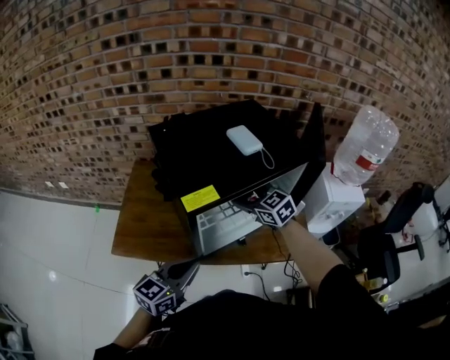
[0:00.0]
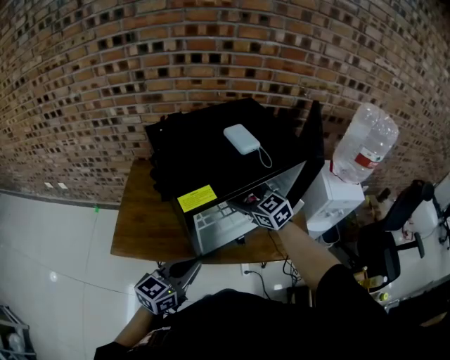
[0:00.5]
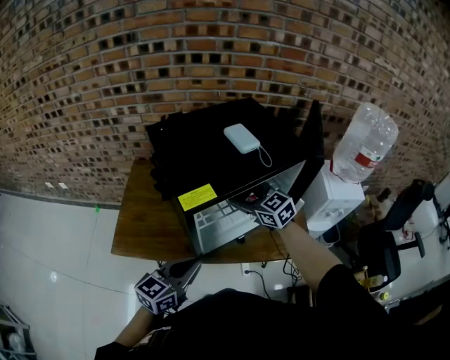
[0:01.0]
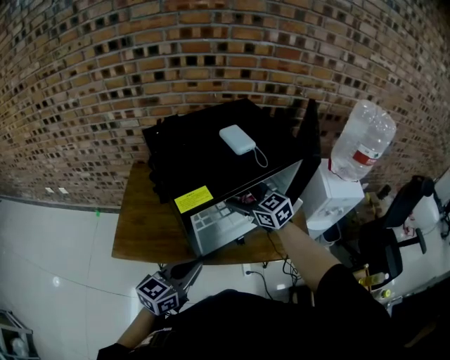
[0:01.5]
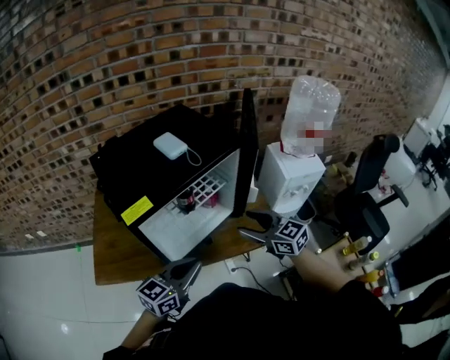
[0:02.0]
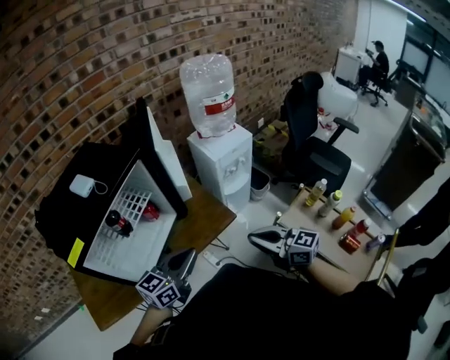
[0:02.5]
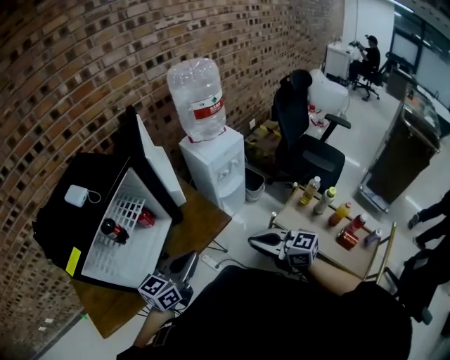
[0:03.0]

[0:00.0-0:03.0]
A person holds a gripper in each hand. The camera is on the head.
0:00.0 to 0:01.5: The grippers stay close to where they were, moving slightly.
0:01.5 to 0:03.0: The right gripper ends up roughly 50 cm from where it was, changes its angle by some 40 degrees, and closes. Meanwhile the left gripper ends up approximately 30 cm from where it was, and rotates about 40 degrees.

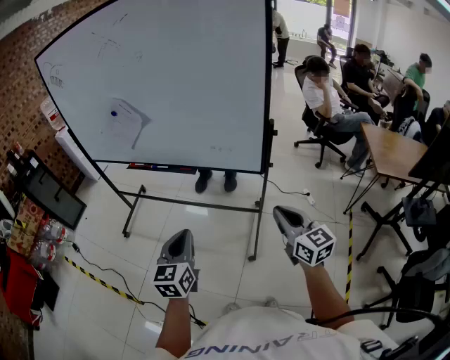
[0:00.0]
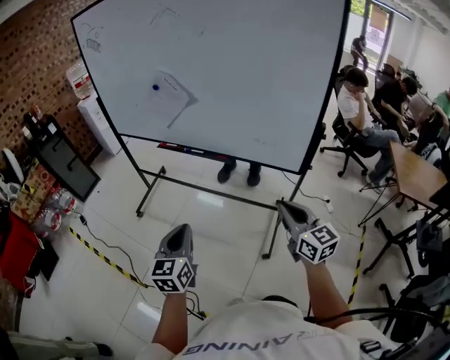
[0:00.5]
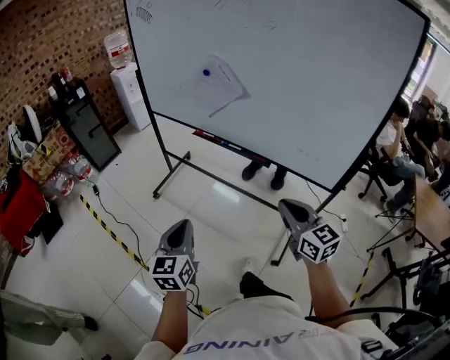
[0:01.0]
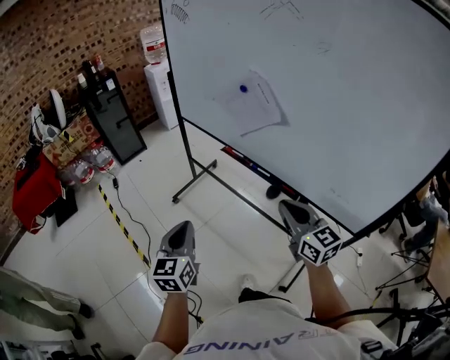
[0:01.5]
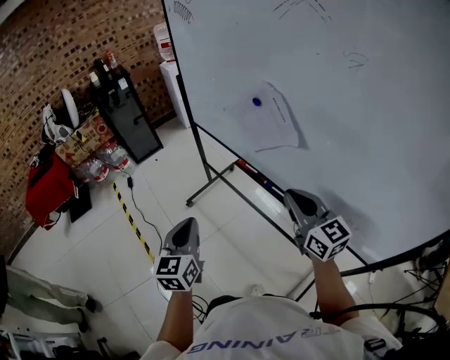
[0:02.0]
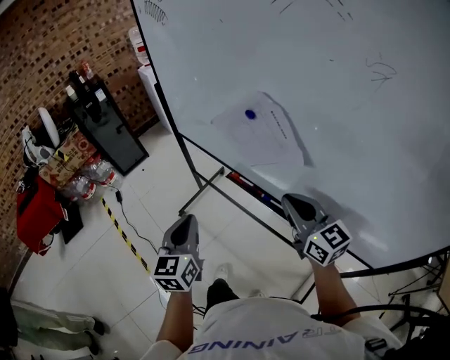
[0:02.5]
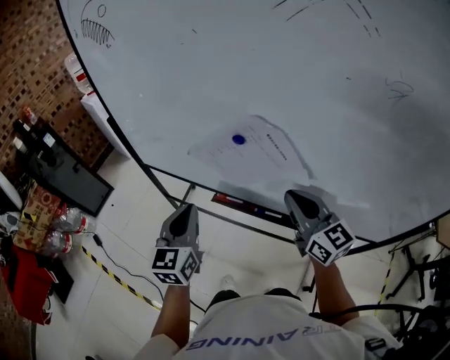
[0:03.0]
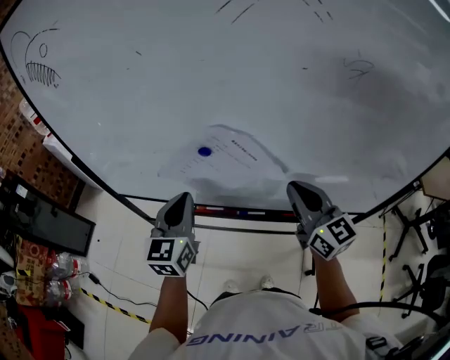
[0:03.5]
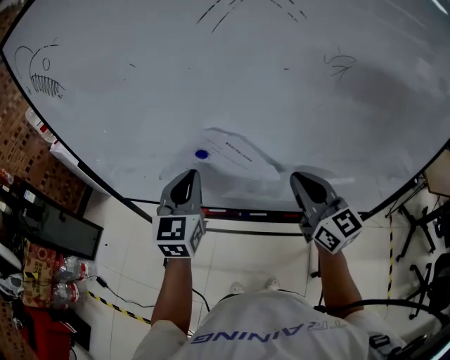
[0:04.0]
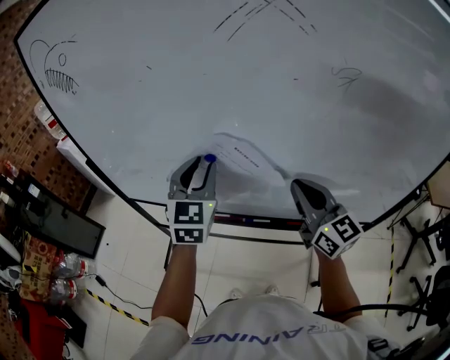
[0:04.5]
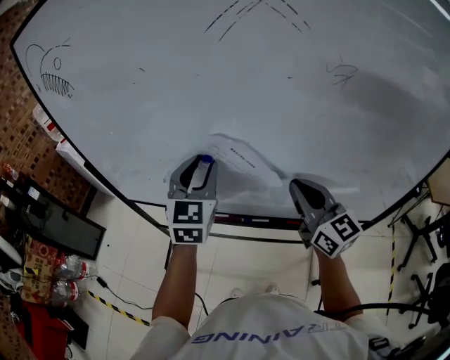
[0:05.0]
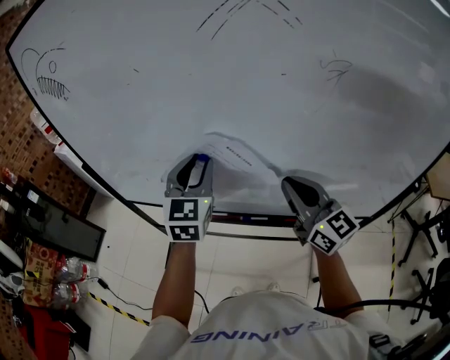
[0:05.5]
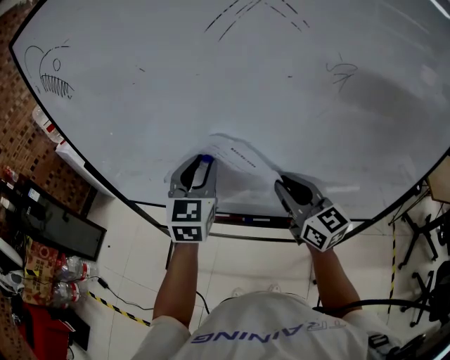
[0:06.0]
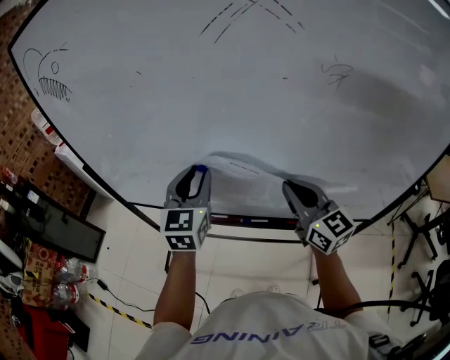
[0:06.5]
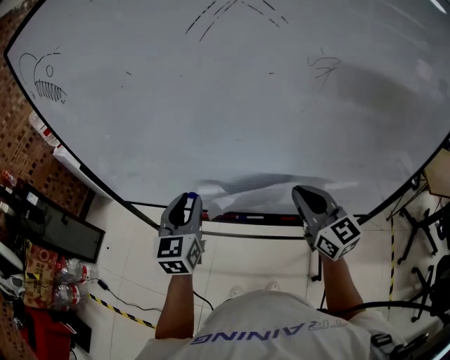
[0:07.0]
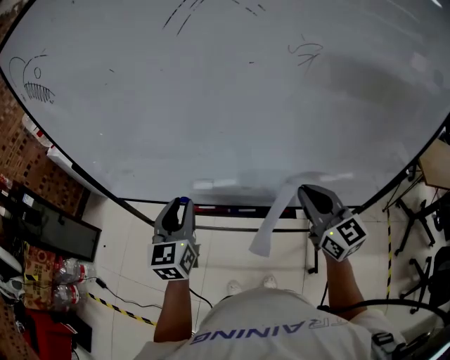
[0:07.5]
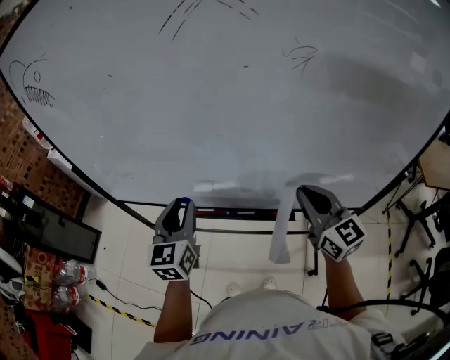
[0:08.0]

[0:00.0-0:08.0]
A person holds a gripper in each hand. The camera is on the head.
0:00.0 to 0:02.0: The two grippers travel together, about 50 cm. The right gripper turns by about 40 degrees. The left gripper turns by roughly 30 degrees.
0:02.0 to 0:04.0: The right gripper changes place by roughly 15 cm, and swivels approximately 40 degrees; the left gripper shifts by about 35 cm, and swivels approximately 50 degrees.
0:04.0 to 0:06.0: The left gripper opens.
0:06.0 to 0:08.0: The right gripper travels to the right and backward by some 10 cm. Meanwhile the left gripper shifts about 10 cm backward and downward.

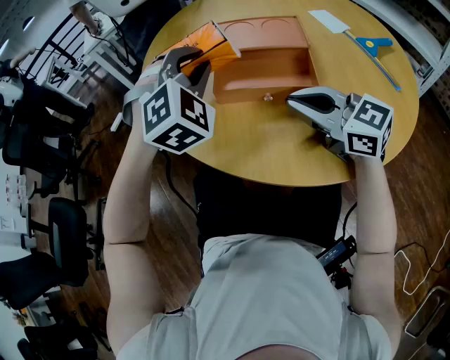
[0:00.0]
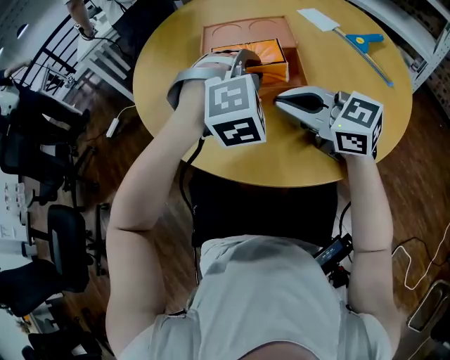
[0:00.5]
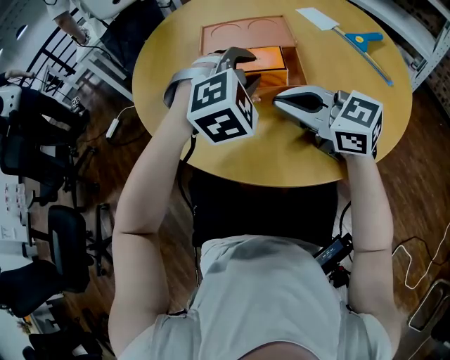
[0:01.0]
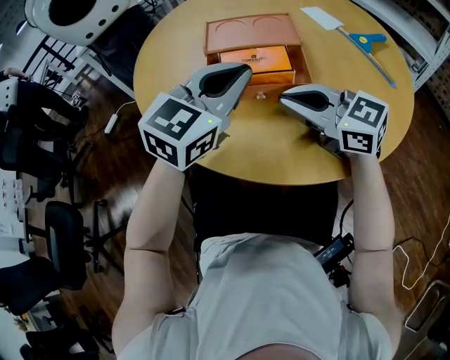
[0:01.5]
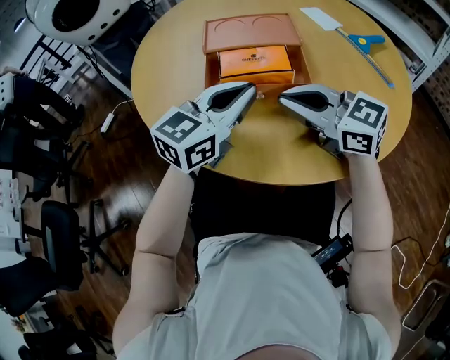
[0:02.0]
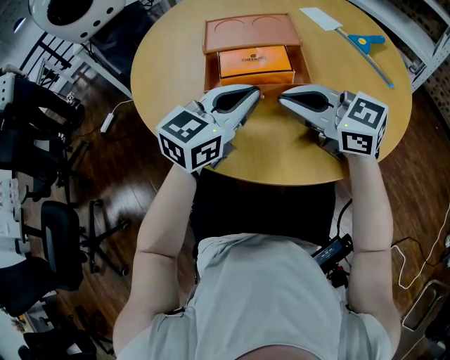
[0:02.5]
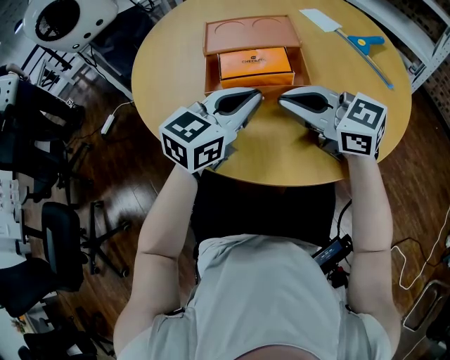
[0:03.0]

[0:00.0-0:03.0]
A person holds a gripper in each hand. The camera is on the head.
0:00.0 to 0:01.5: The left gripper travels backward and to the right by about 10 cm, turns by approximately 60 degrees, and closes.
0:01.5 to 0:03.0: The left gripper travels downward by some 5 cm.

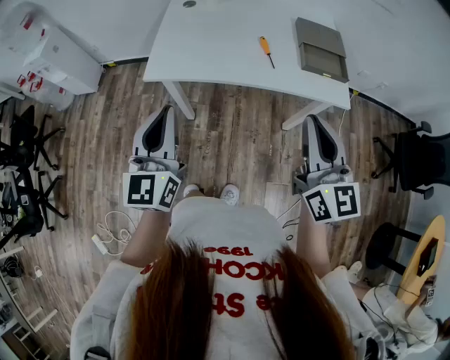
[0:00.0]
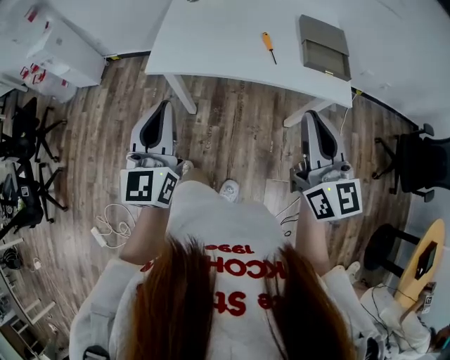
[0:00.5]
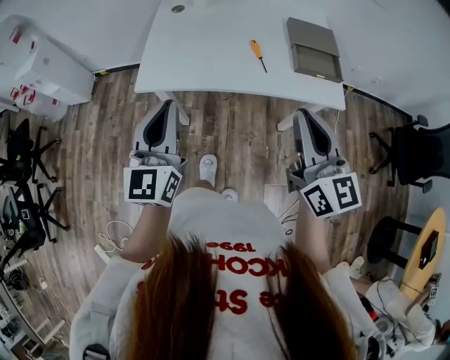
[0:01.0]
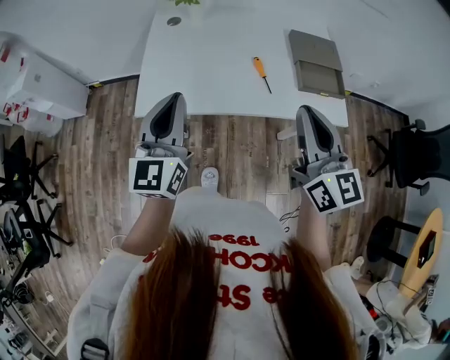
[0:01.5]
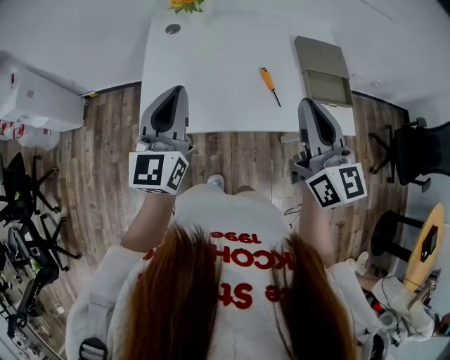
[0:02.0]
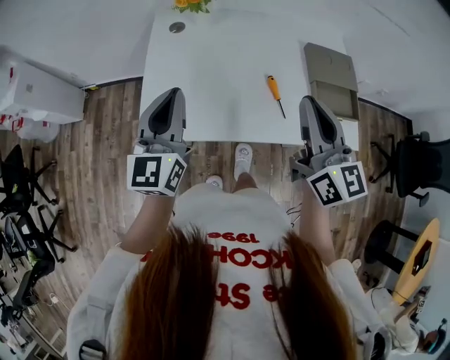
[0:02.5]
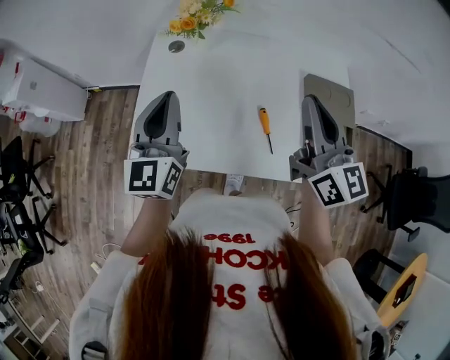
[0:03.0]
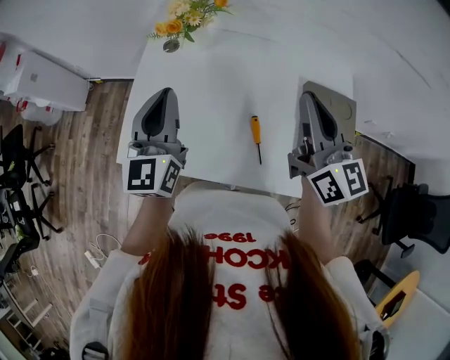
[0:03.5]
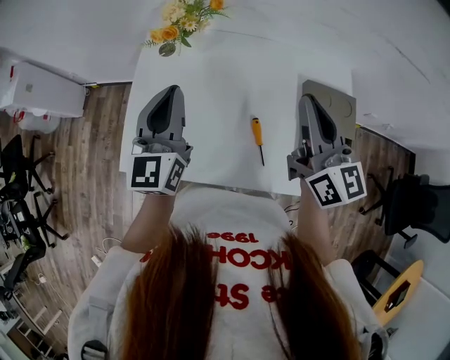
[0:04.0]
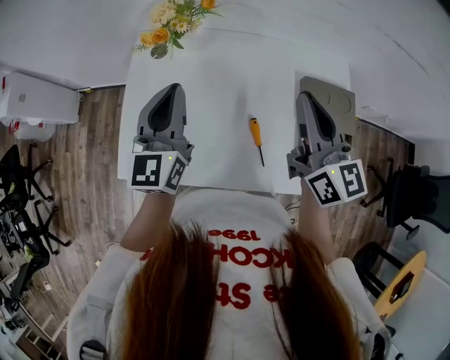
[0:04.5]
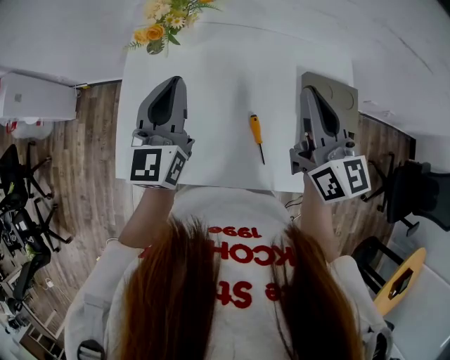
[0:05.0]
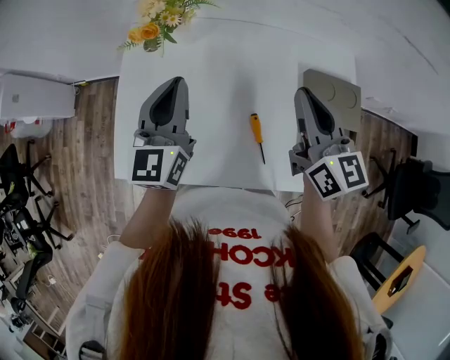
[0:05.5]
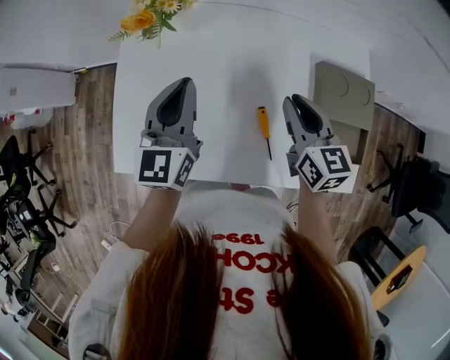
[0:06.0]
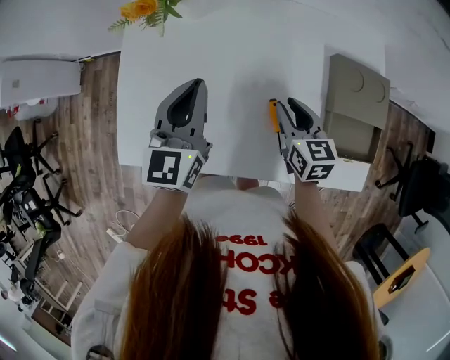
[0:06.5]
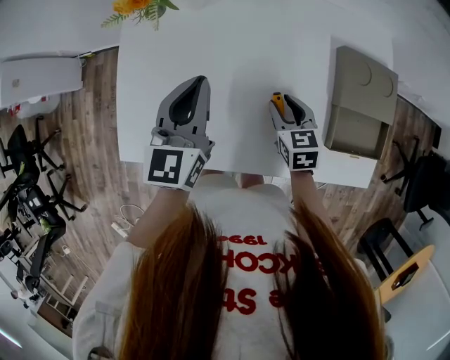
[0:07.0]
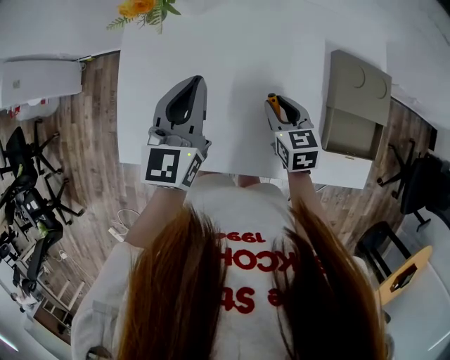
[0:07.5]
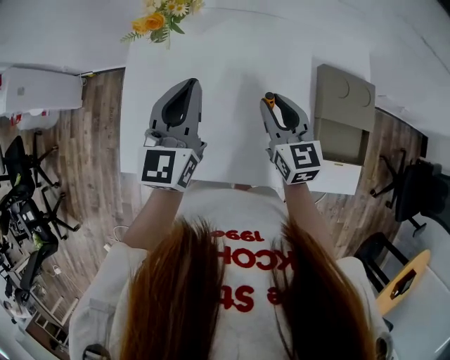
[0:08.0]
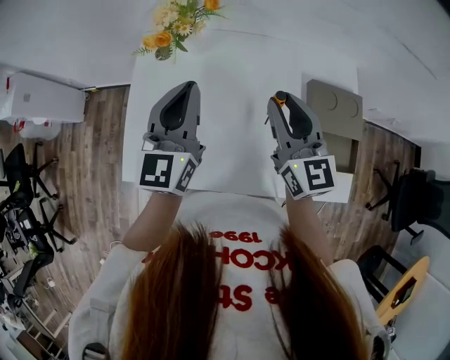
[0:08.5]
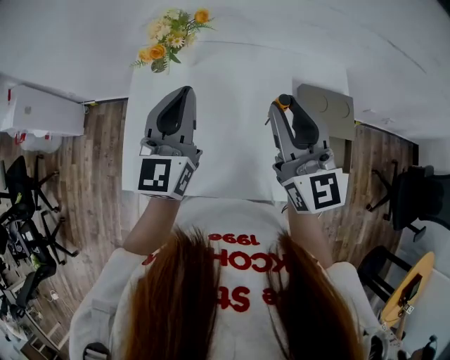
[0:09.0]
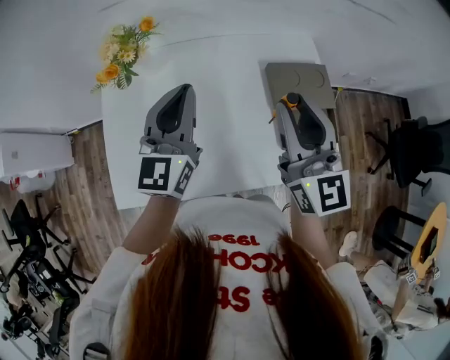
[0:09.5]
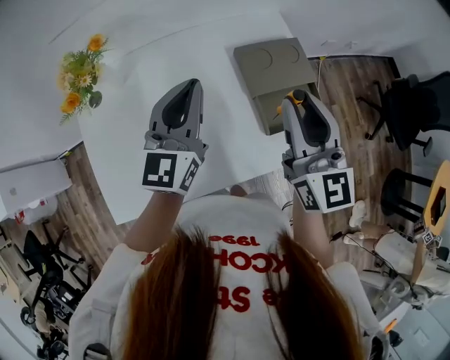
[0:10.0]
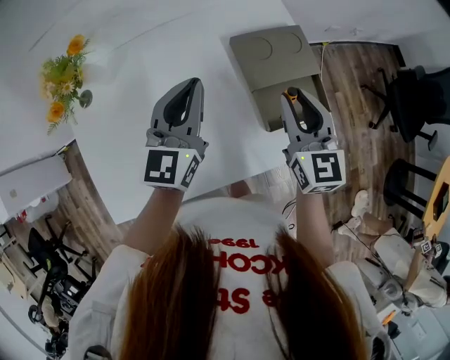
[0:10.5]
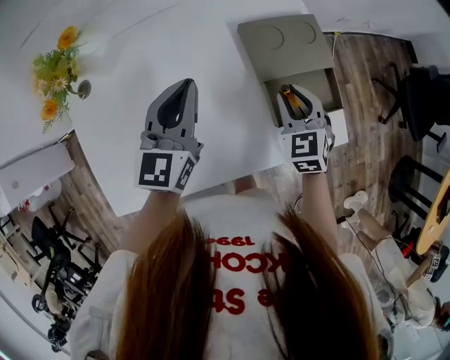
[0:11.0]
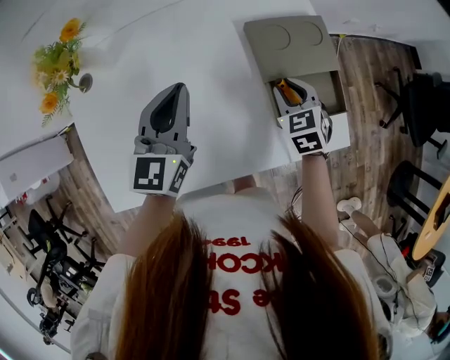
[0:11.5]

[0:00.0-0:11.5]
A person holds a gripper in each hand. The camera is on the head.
0:00.0 to 0:02.0: The two grippers go about 20 cm forward.
0:02.0 to 0:04.0: The right gripper heads forward, covering roughly 20 cm; the left gripper travels forward and to the right by about 15 cm.
0:04.0 to 0:06.0: The right gripper is displaced downward by approximately 15 cm, and changes its angle by approximately 30 degrees. Meanwhile the left gripper is displaced downward by approximately 10 cm.
0:06.0 to 0:07.5: The right gripper moves downward, about 15 cm.
0:07.5 to 0:09.5: The right gripper heads upward, covering about 30 cm, and tilts its fingers roughly 40 degrees upward, while the left gripper goes approximately 15 cm upward and to the right.
0:09.5 to 0:11.5: The left gripper goes about 10 cm downward and to the right, while the right gripper goes approximately 30 cm downward, and angles its fingers downward, by about 50 degrees.
